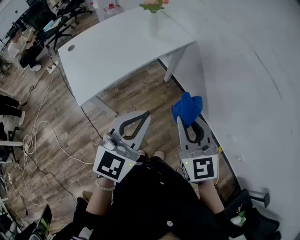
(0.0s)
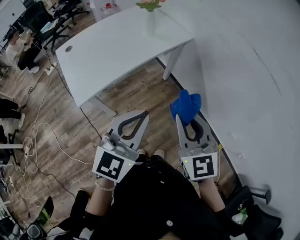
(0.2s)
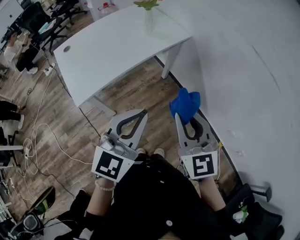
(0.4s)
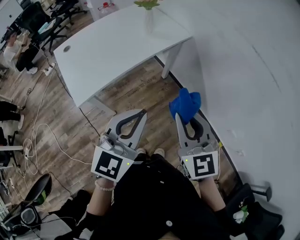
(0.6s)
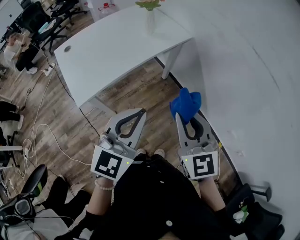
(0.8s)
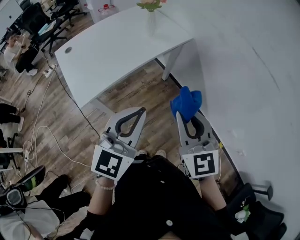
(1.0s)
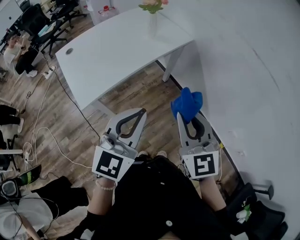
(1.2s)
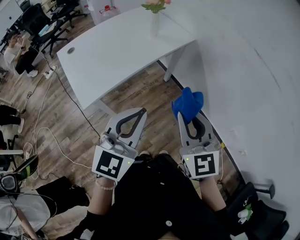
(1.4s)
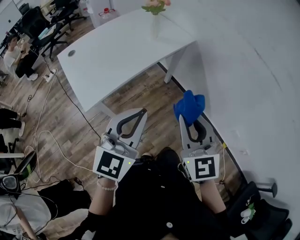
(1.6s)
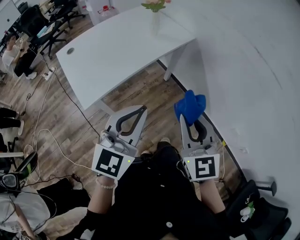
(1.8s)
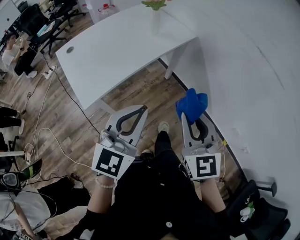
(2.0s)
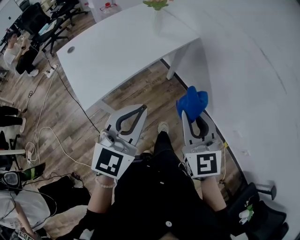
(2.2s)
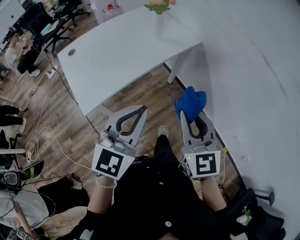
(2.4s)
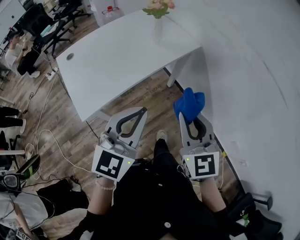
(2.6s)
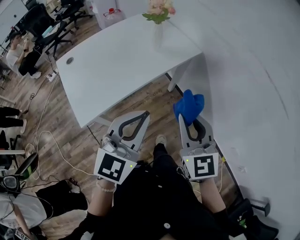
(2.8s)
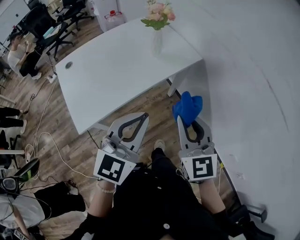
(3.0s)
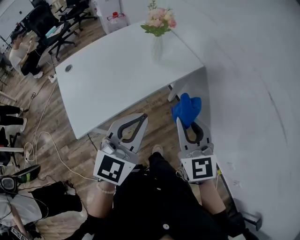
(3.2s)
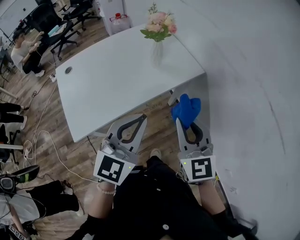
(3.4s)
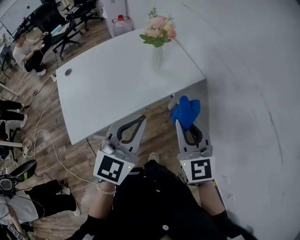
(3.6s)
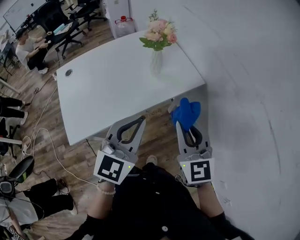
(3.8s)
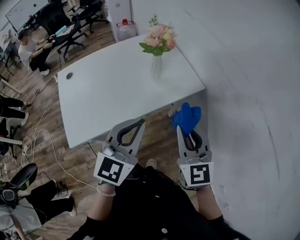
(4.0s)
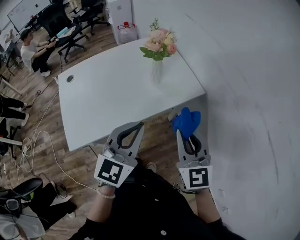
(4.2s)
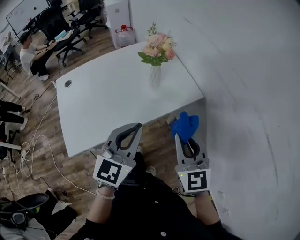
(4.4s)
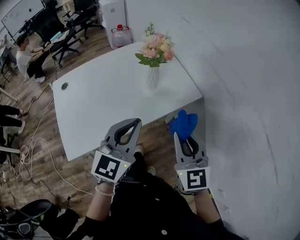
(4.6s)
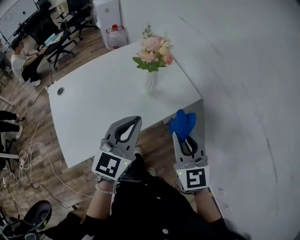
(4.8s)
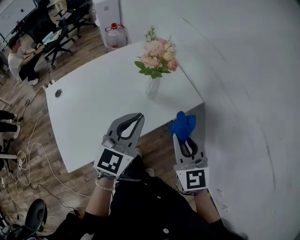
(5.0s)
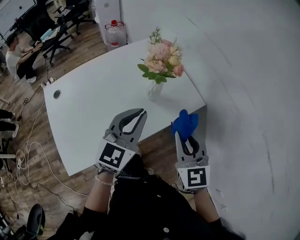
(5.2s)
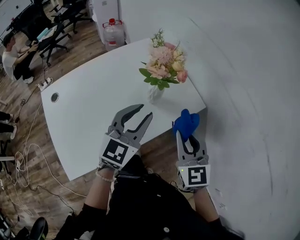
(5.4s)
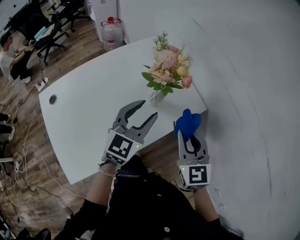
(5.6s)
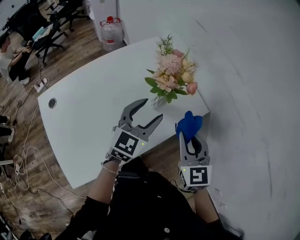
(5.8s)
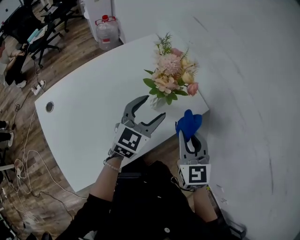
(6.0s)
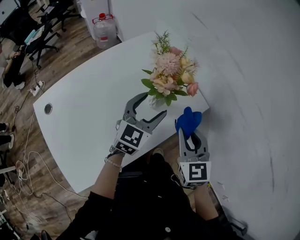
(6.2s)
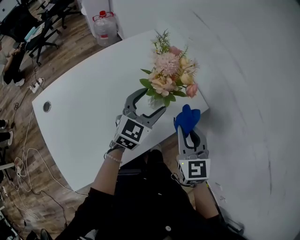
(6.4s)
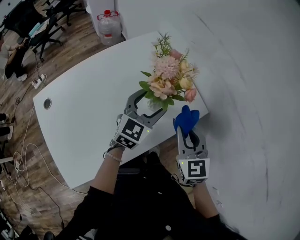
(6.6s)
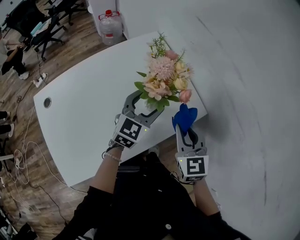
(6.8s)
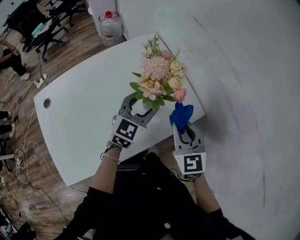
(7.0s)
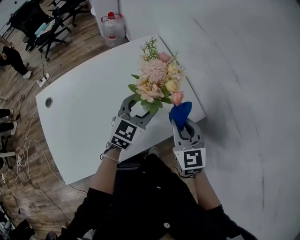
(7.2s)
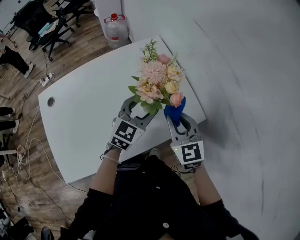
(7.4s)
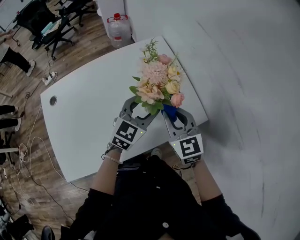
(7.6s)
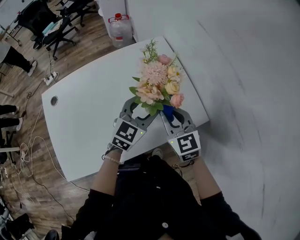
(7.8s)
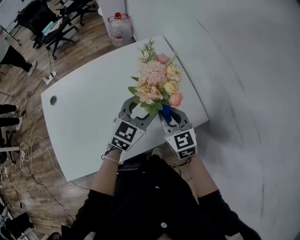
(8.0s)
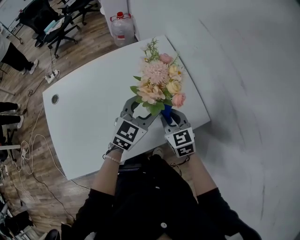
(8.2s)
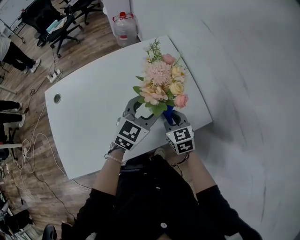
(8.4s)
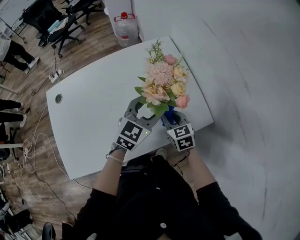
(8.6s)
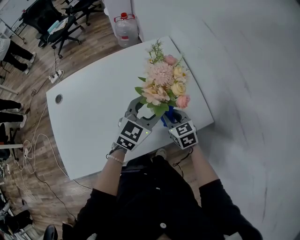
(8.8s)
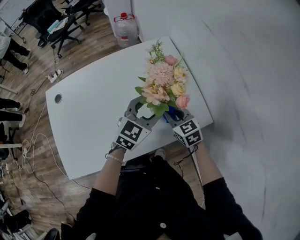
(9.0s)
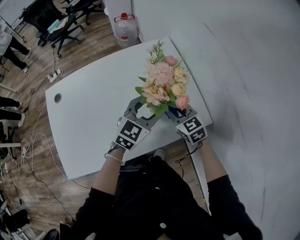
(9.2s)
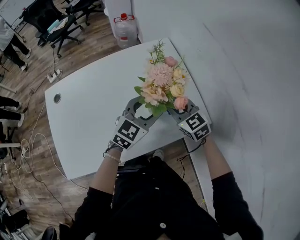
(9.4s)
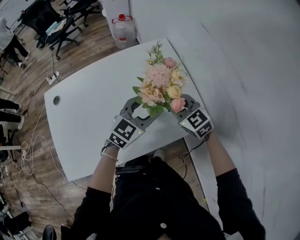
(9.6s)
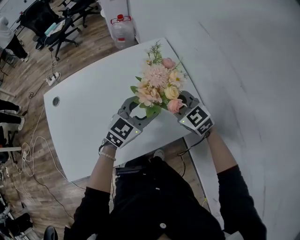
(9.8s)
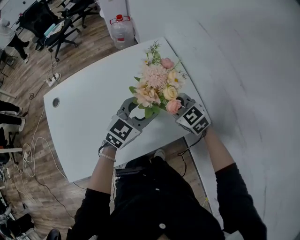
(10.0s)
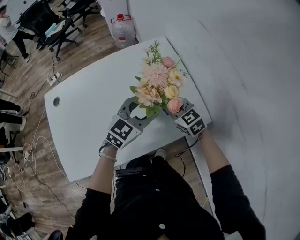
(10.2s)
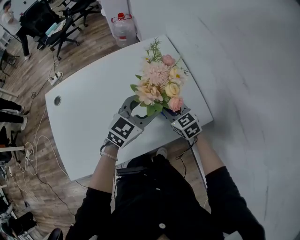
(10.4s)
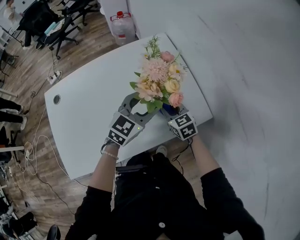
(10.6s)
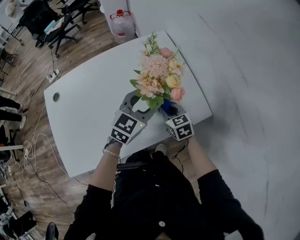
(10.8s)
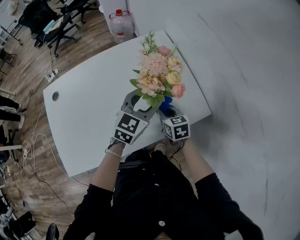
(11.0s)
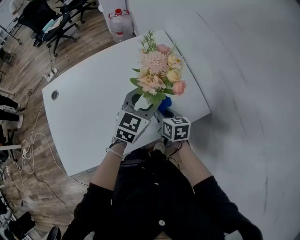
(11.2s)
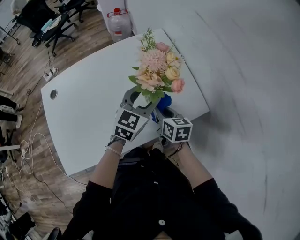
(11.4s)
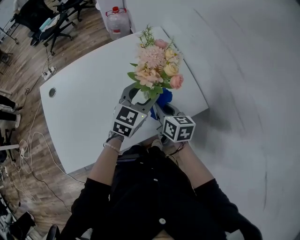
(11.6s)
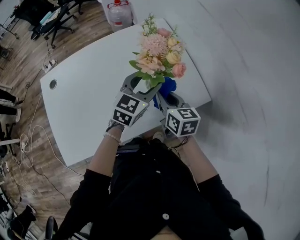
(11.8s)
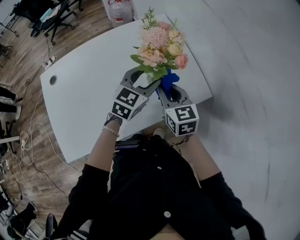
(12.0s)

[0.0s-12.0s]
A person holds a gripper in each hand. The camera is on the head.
0.0s to 1.6s: The two grippers go about 5 cm to the left.
1.6s to 3.0s: The two grippers go some 15 cm forward.
3.0s to 4.4s: Both grippers move forward, approximately 15 cm.
4.4s to 6.0s: Both grippers travel together forward, approximately 20 cm. The left gripper opens.
6.0s to 7.6s: The right gripper is displaced forward by roughly 10 cm, and changes its angle by approximately 20 degrees, while the left gripper heads forward, covering approximately 5 cm.
7.6s to 9.0s: The right gripper heads downward, covering some 10 cm.
9.0s to 10.4s: The right gripper travels upward and back again, about 10 cm each way.
10.4s to 12.0s: The right gripper goes roughly 10 cm upward, and turns by approximately 20 degrees.

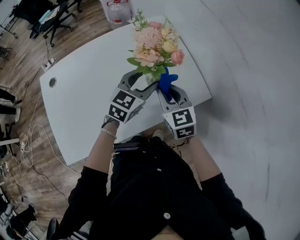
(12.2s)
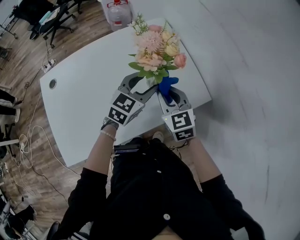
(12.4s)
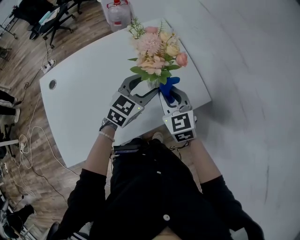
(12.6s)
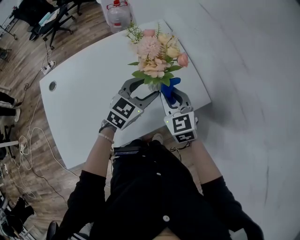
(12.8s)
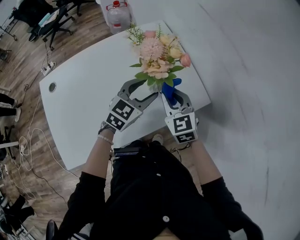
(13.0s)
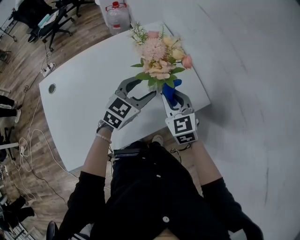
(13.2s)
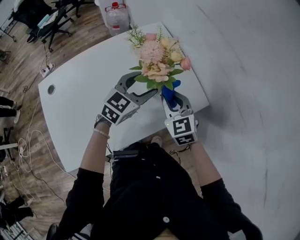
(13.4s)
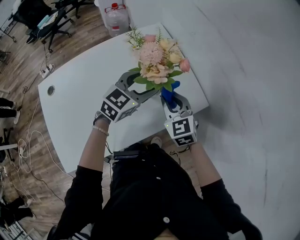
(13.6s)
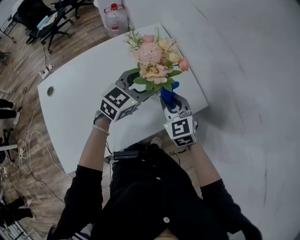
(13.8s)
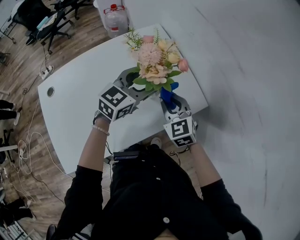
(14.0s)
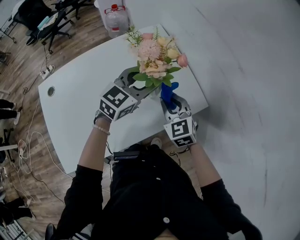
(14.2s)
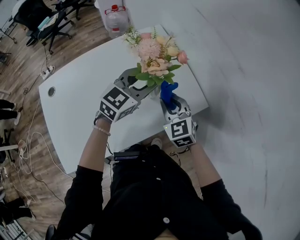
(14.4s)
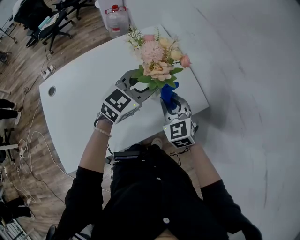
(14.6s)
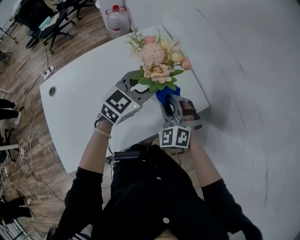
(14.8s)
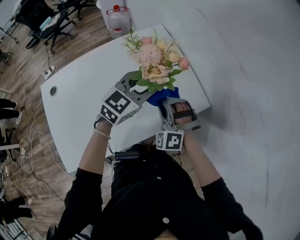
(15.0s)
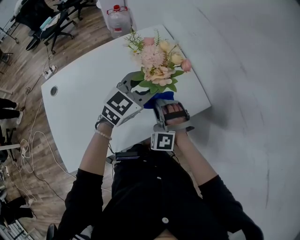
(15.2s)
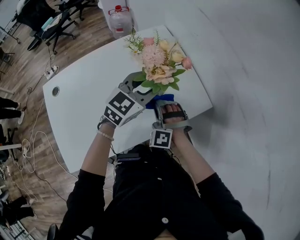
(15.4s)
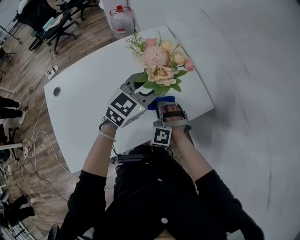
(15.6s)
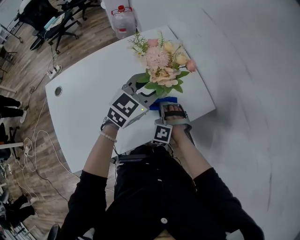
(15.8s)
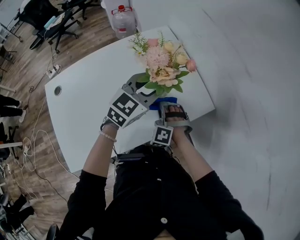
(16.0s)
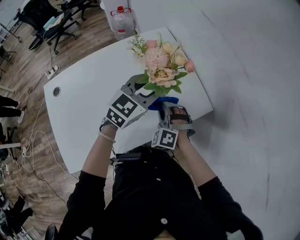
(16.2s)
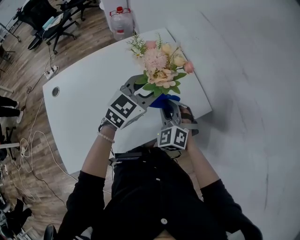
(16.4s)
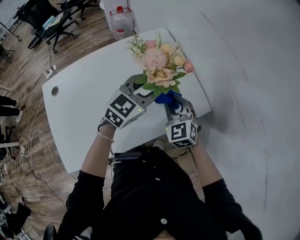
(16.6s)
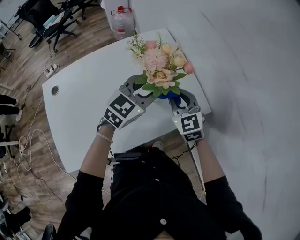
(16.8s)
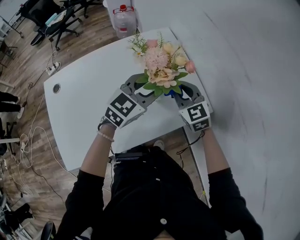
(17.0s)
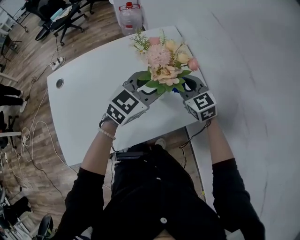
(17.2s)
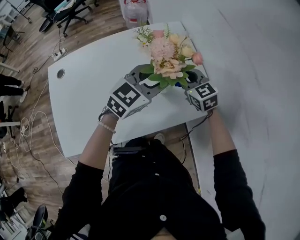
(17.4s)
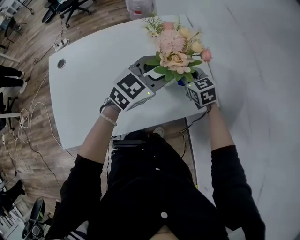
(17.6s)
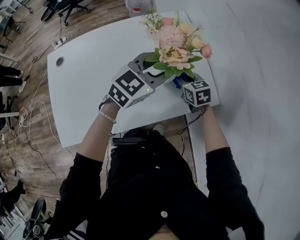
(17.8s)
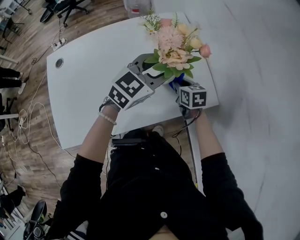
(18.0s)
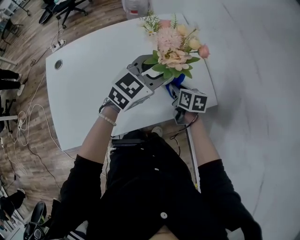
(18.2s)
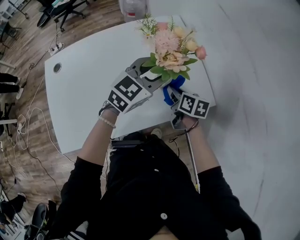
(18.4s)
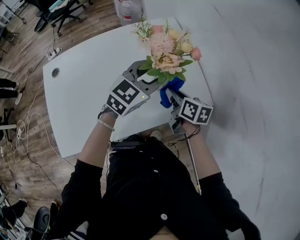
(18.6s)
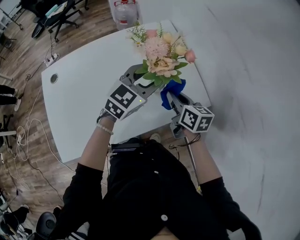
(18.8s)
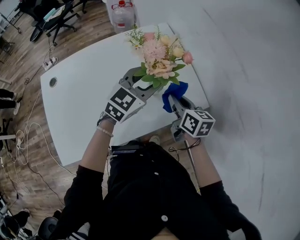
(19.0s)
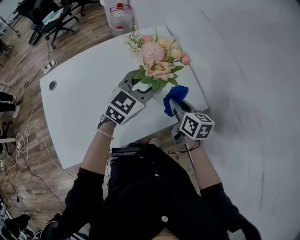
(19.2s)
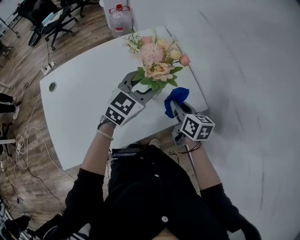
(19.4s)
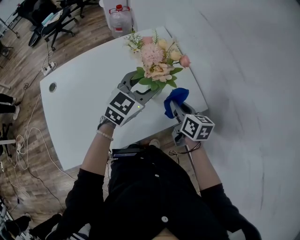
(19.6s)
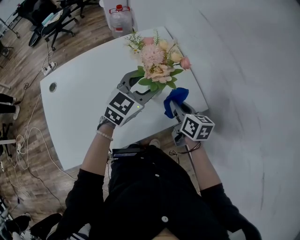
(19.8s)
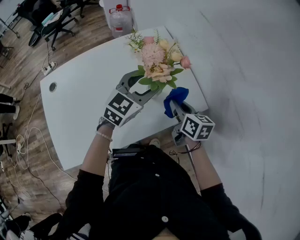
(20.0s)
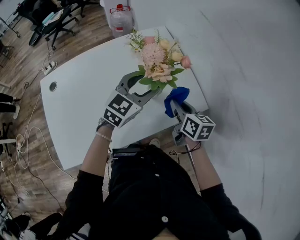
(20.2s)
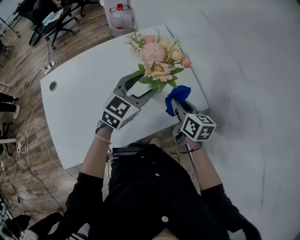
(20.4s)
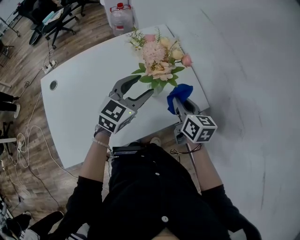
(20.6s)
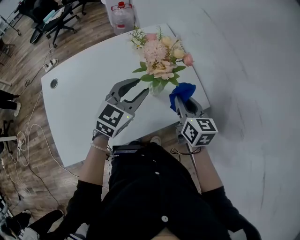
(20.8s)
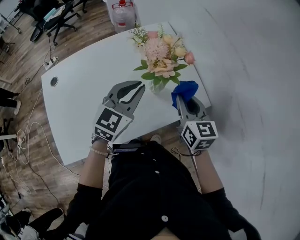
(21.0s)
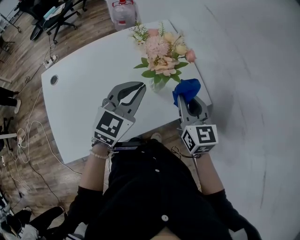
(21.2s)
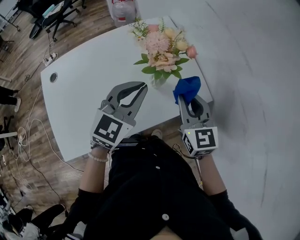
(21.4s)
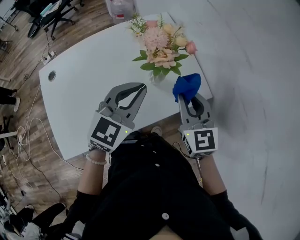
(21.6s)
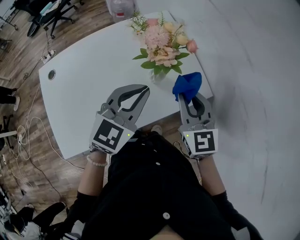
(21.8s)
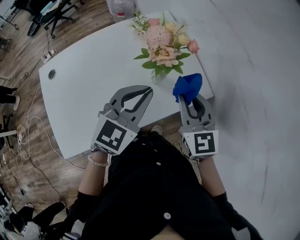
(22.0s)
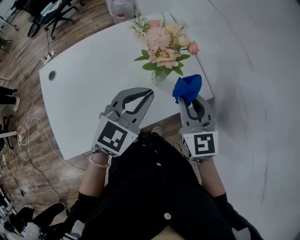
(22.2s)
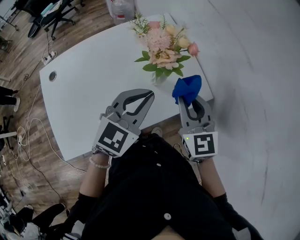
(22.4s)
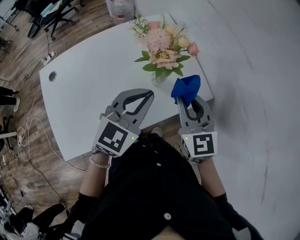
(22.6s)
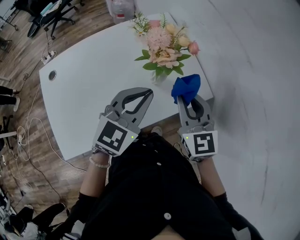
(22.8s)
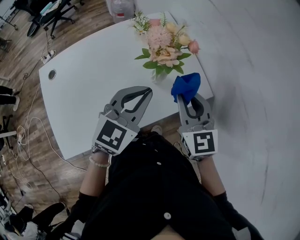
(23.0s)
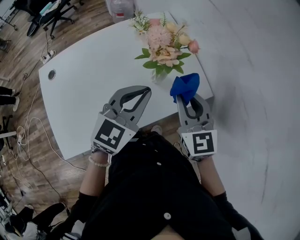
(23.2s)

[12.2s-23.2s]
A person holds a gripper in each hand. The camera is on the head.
12.2s to 13.8s: The left gripper shifts by approximately 5 cm.
13.8s to 15.4s: The left gripper closes up, while the right gripper travels downward by approximately 5 cm, and twists about 60 degrees counterclockwise, seen from behind.
15.4s to 17.0s: The right gripper moves forward and upward, some 10 cm, and twists some 60 degrees clockwise, seen from behind.
17.0s to 18.4s: The right gripper heads downward, covering some 10 cm, and twists about 60 degrees clockwise, seen from behind.
18.4s to 20.0s: The right gripper travels upward by about 5 cm.
20.0s to 21.6s: The left gripper heads backward, covering about 10 cm, and closes. The right gripper heads upward, covering some 10 cm, and turns by approximately 40 degrees.
21.6s to 23.2s: There are only small adjustments of the grippers.

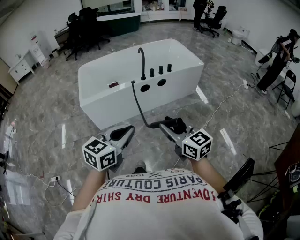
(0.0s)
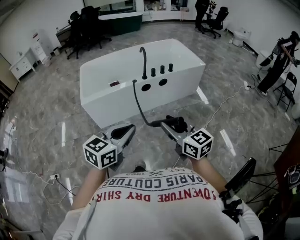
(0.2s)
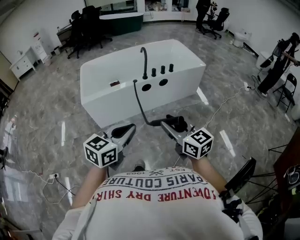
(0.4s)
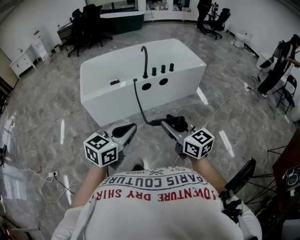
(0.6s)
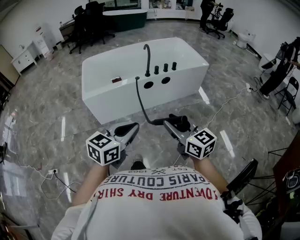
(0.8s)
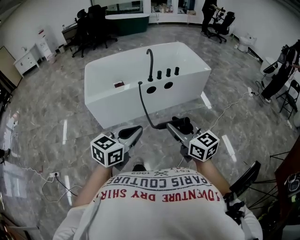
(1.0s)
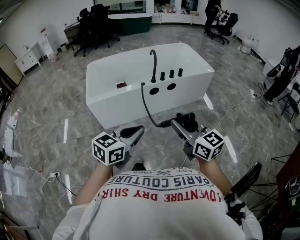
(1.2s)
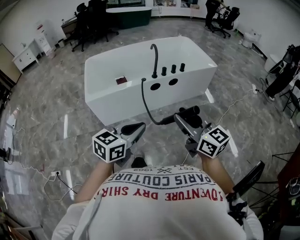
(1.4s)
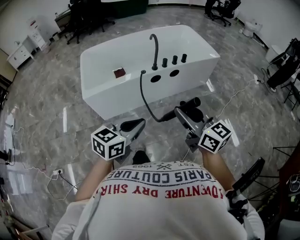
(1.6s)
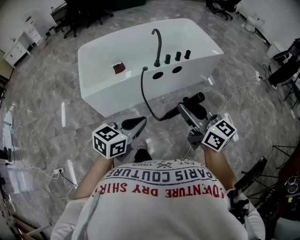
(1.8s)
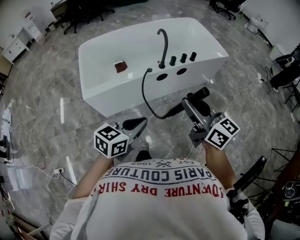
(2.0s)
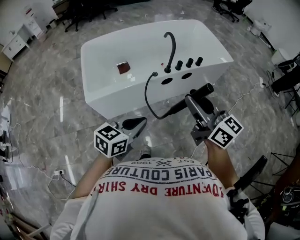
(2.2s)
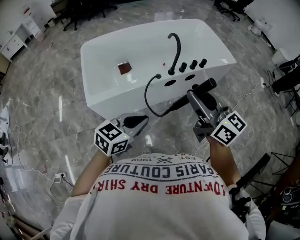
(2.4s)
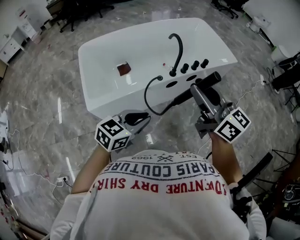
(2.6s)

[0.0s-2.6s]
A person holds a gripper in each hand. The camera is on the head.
0.0s to 1.2s: The grippers make only small movements.
1.2s to 2.6s: The two grippers go roughly 30 cm forward and to the left.
